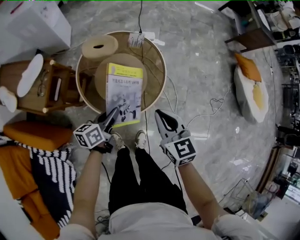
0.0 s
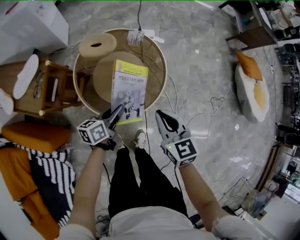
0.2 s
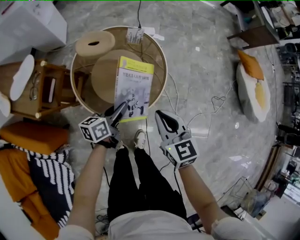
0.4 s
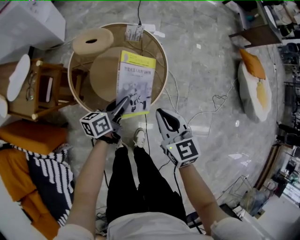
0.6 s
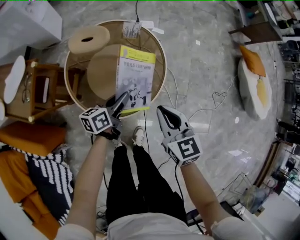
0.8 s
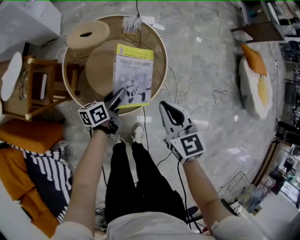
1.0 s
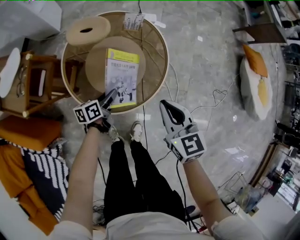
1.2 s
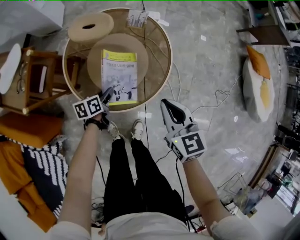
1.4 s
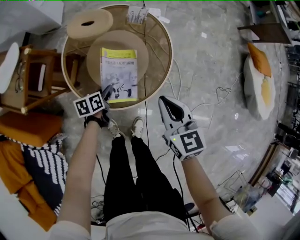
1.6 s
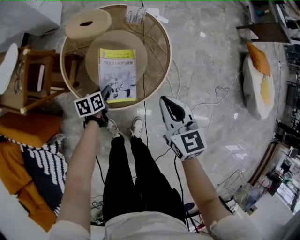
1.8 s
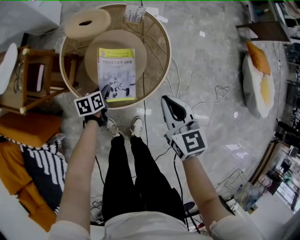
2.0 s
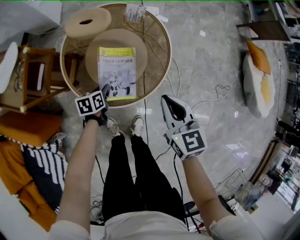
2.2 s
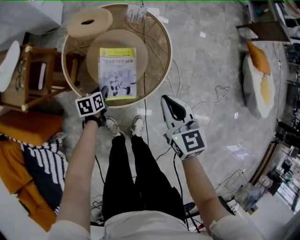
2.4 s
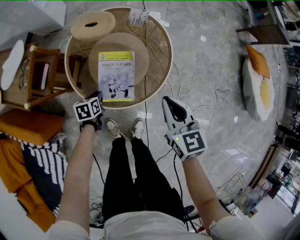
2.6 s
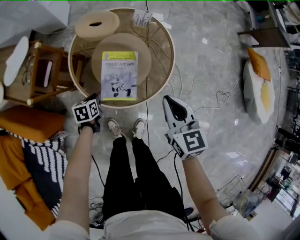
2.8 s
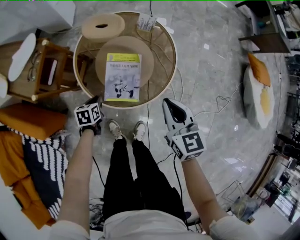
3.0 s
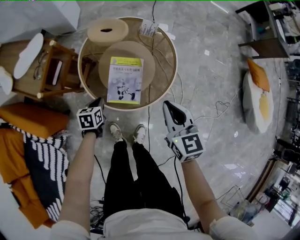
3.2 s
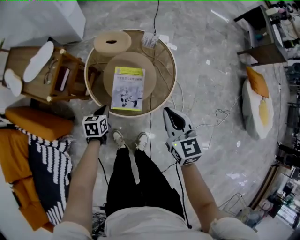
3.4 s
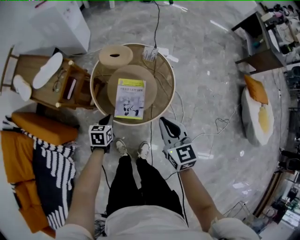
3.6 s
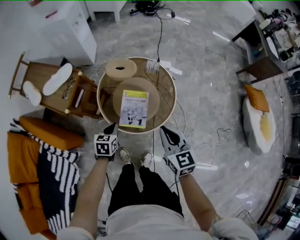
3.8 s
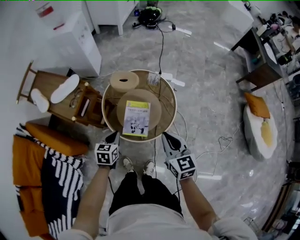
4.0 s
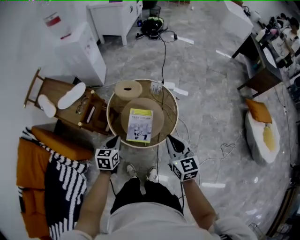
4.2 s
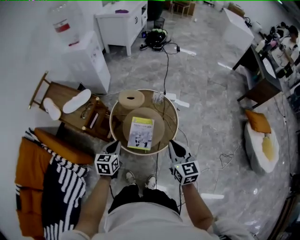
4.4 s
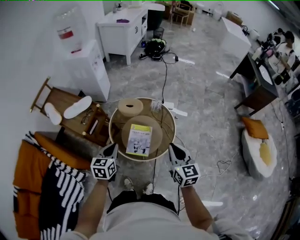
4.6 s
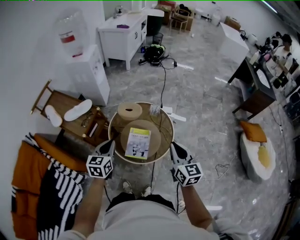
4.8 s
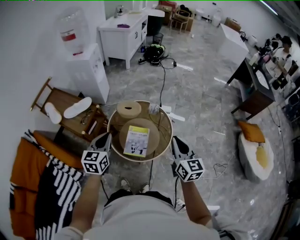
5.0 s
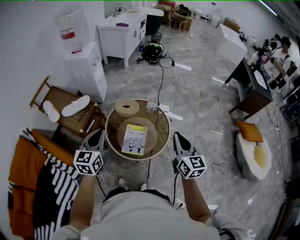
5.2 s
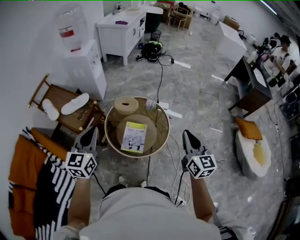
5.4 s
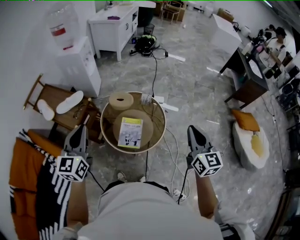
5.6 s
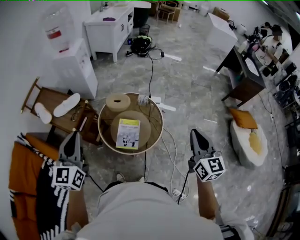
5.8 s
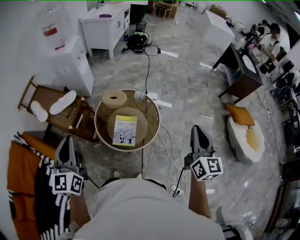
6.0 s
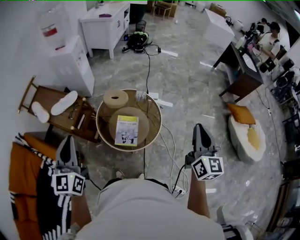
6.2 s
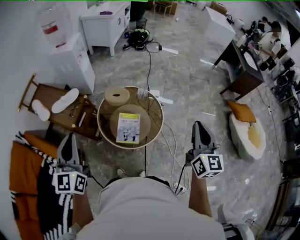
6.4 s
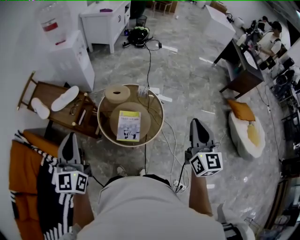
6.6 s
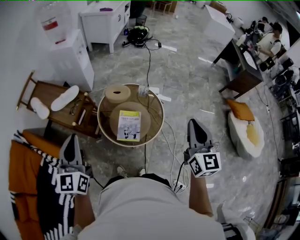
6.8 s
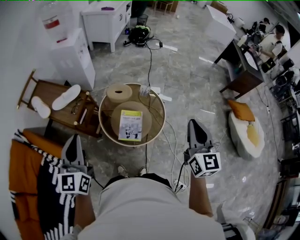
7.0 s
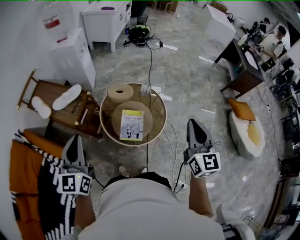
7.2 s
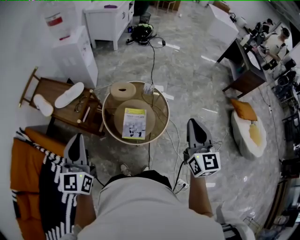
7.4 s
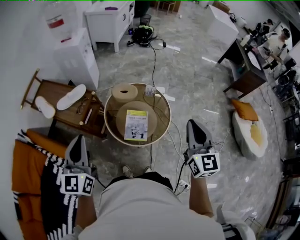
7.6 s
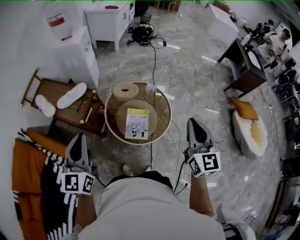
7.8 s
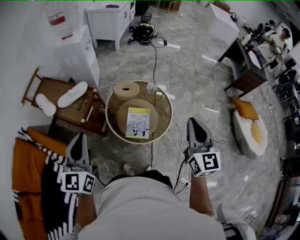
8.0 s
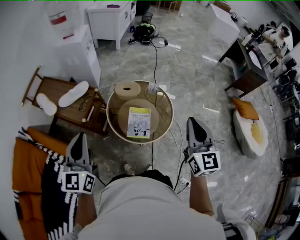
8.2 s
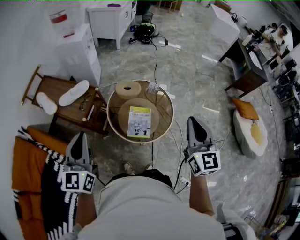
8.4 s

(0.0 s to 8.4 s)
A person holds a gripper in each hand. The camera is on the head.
0.0 s - 1.4 s: The right gripper heads downward, covering approximately 10 cm. The left gripper goes some 20 cm downward.
1.4 s - 2.8 s: The left gripper shifts approximately 10 cm to the left and backward, and turns by some 30 degrees.
2.8 s - 4.2 s: The left gripper shifts approximately 35 cm upward, and turns by approximately 30 degrees, while the right gripper moves upward, roughly 20 cm.
4.2 s - 5.6 s: The left gripper shifts approximately 30 cm upward, and points its fingers roughly 30 degrees further upward. The right gripper travels upward and to the right by about 20 cm.
5.6 s - 7.0 s: The grippers both shift to the left by approximately 5 cm.
7.0 s - 8.4 s: The right gripper goes approximately 10 cm to the left.

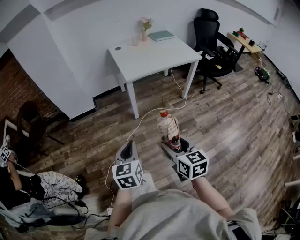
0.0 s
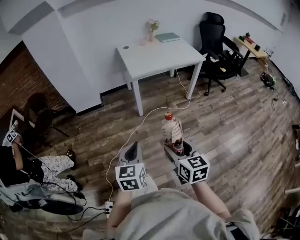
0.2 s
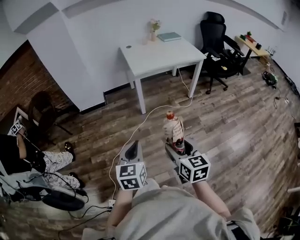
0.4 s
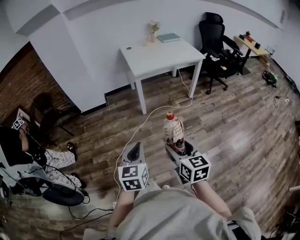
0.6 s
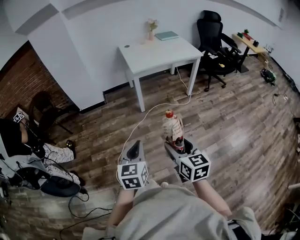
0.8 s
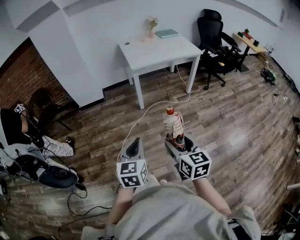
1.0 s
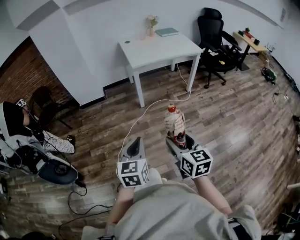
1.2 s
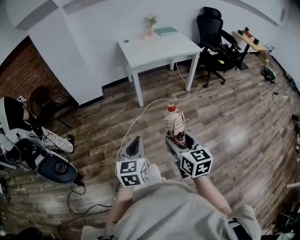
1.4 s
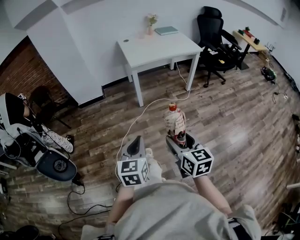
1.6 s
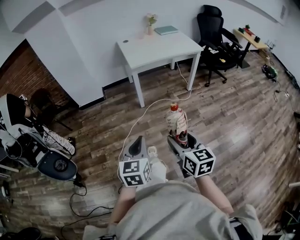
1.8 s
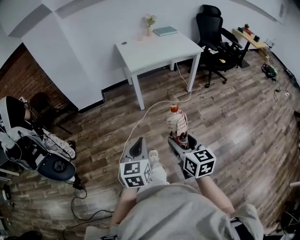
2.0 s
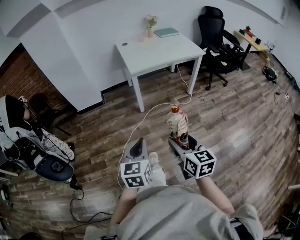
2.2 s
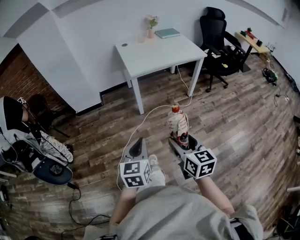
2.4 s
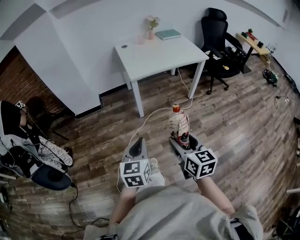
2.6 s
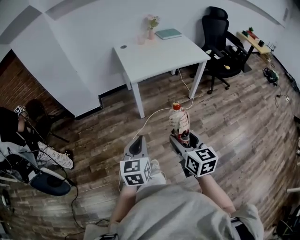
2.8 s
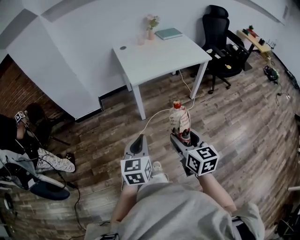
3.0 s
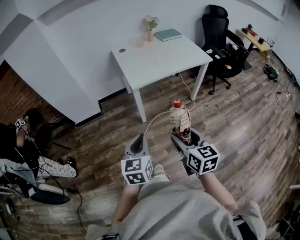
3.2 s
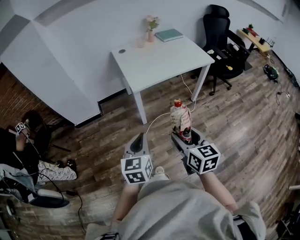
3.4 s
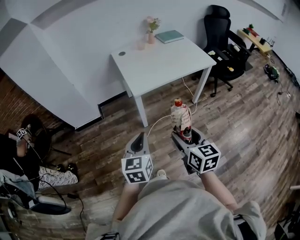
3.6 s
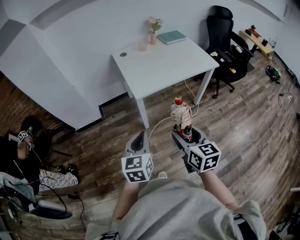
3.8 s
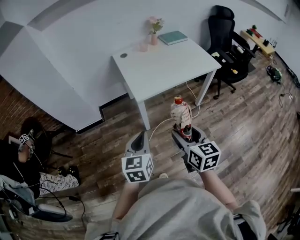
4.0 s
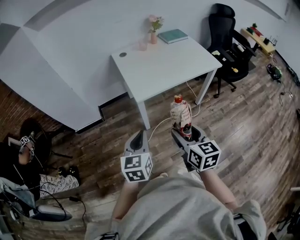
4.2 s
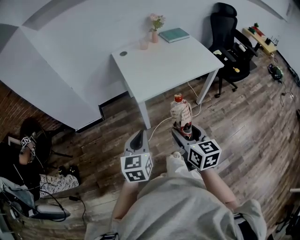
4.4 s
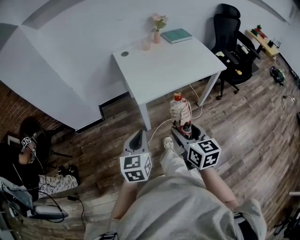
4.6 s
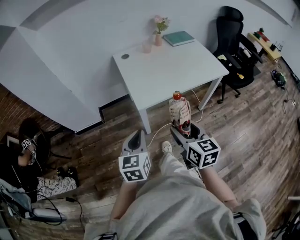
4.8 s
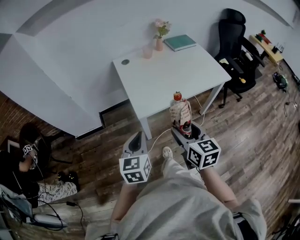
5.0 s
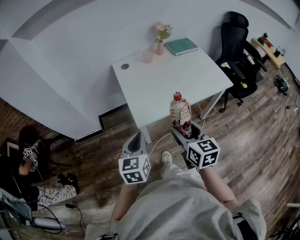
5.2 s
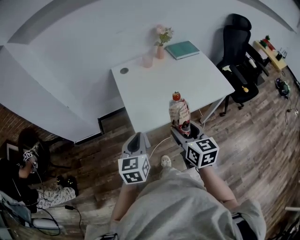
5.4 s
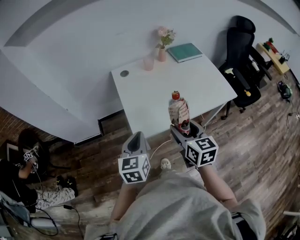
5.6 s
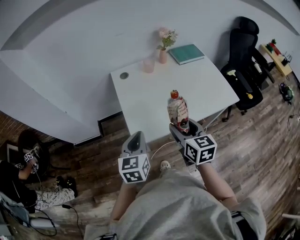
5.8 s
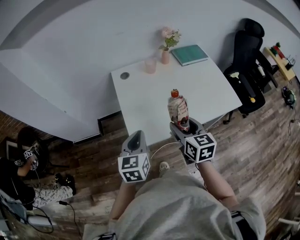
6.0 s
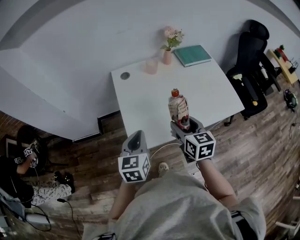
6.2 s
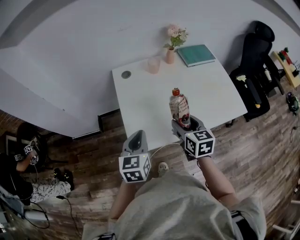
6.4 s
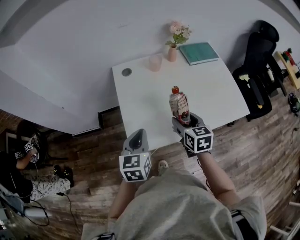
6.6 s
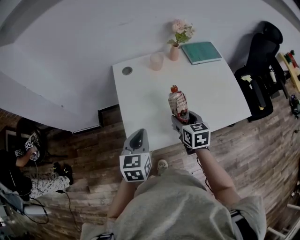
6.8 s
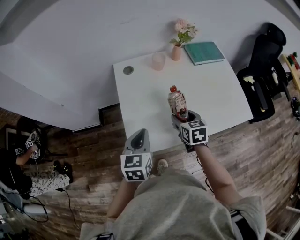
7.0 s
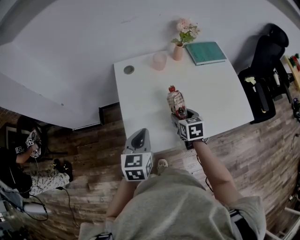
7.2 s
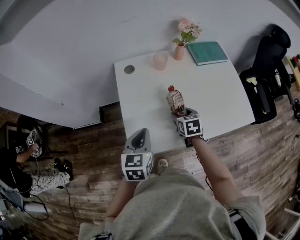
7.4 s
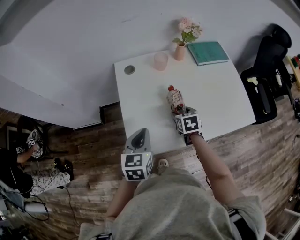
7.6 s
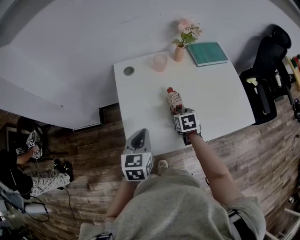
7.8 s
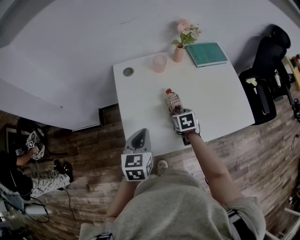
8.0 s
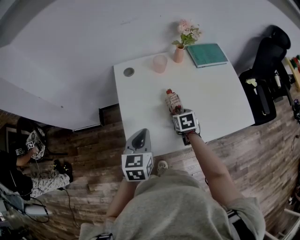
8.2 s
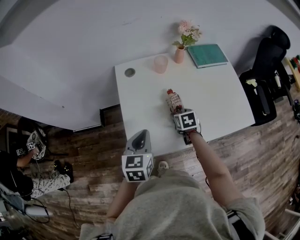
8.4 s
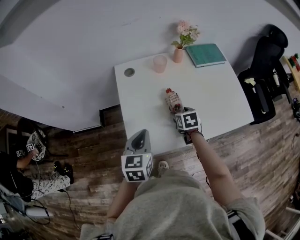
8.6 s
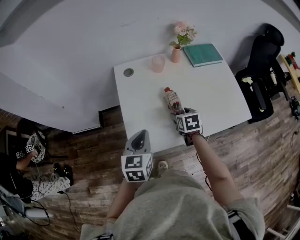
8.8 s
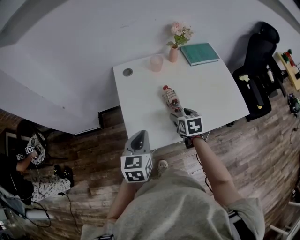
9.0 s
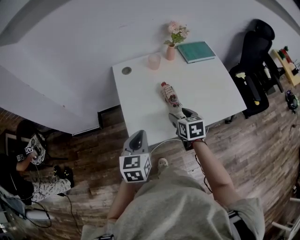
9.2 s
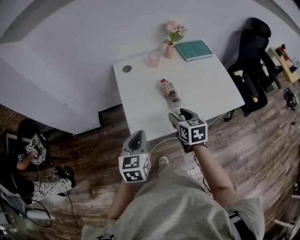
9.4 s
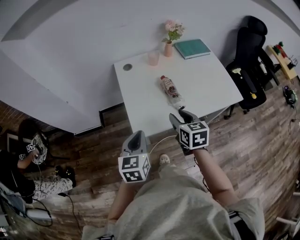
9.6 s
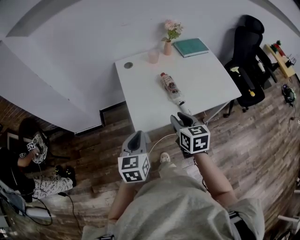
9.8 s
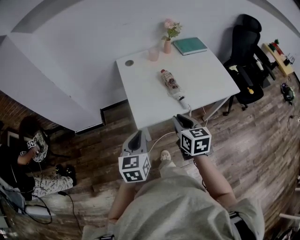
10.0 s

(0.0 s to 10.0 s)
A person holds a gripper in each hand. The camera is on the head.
0.0 s - 1.4 s: Both grippers travel together backward, about 10 cm.
1.4 s - 2.8 s: The two grippers go roughly 15 cm forward.
2.8 s - 4.2 s: The grippers both shift forward by approximately 25 cm.
4.2 s - 5.8 s: The two grippers go roughly 30 cm forward.
5.8 s - 7.2 s: The left gripper goes some 10 cm forward and downward, while the right gripper heads forward and downward, covering some 25 cm, and changes its angle by about 20 degrees.
8.6 s - 10.0 s: The right gripper goes roughly 35 cm backward and upward, swivels some 30 degrees, and closes up. The left gripper is displaced backward by some 20 cm.

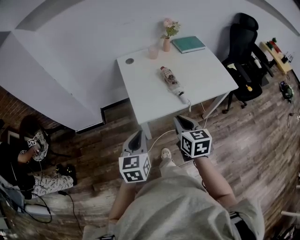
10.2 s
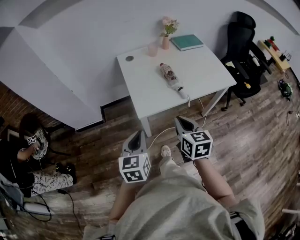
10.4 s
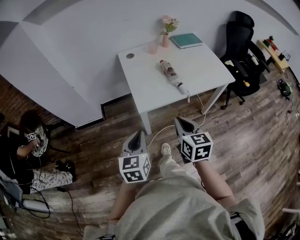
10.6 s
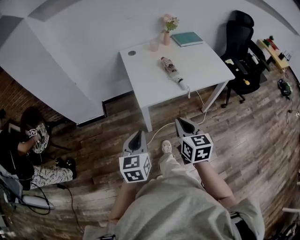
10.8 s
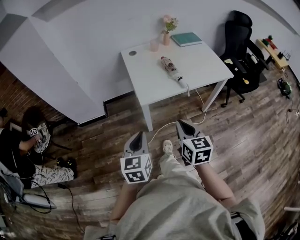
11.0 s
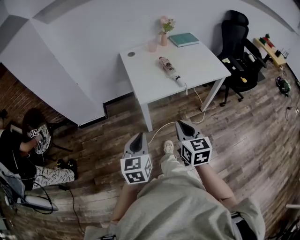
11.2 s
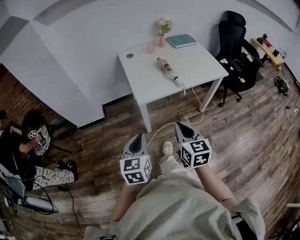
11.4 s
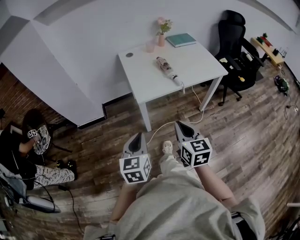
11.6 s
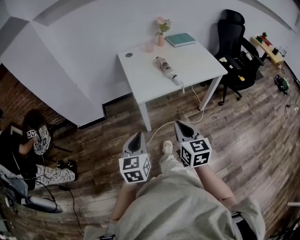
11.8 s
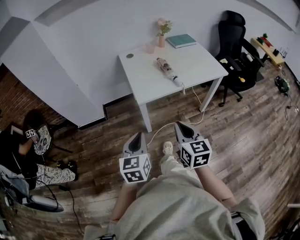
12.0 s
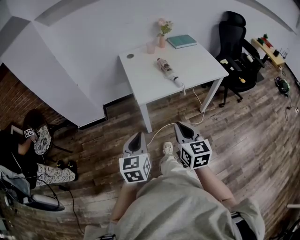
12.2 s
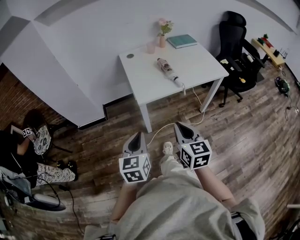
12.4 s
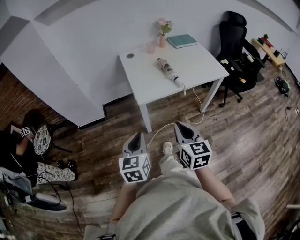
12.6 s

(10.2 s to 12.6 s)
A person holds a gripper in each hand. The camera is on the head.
10.2 s - 11.4 s: Both grippers move backward, some 20 cm.
11.4 s - 12.6 s: The two grippers keep their place.

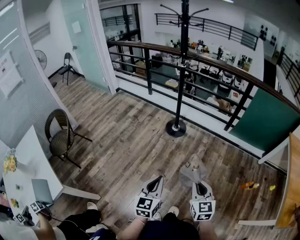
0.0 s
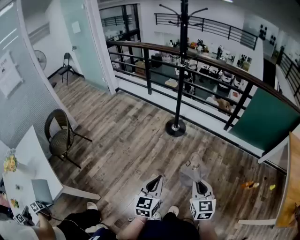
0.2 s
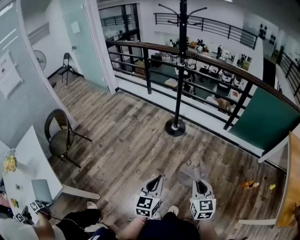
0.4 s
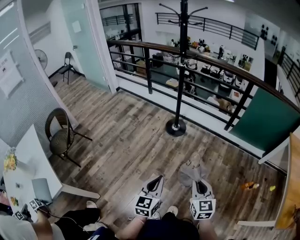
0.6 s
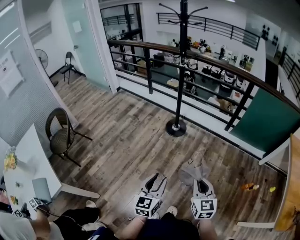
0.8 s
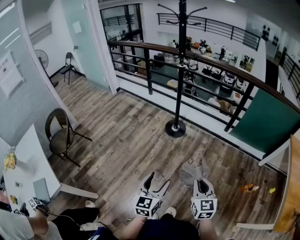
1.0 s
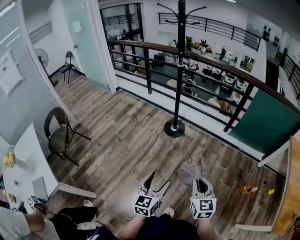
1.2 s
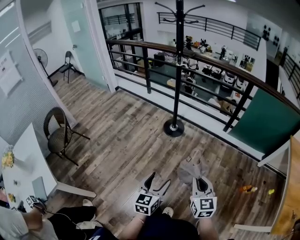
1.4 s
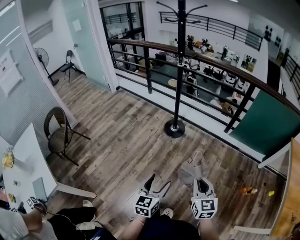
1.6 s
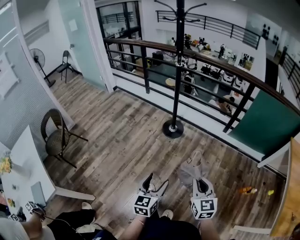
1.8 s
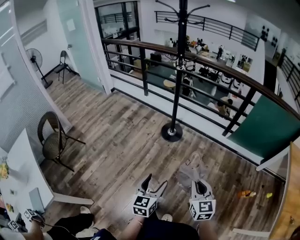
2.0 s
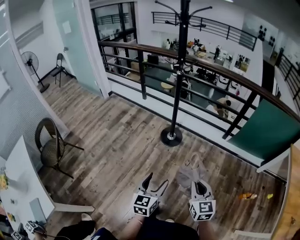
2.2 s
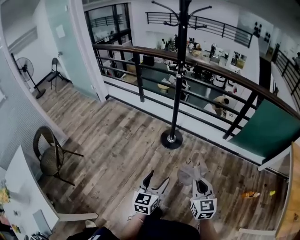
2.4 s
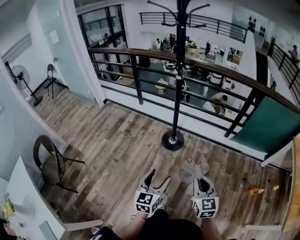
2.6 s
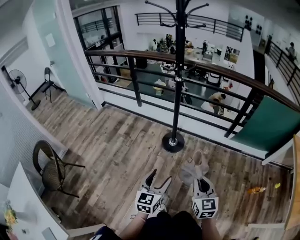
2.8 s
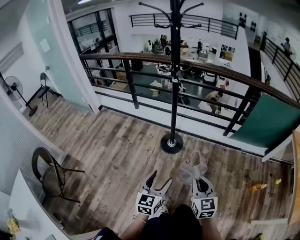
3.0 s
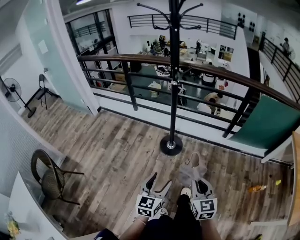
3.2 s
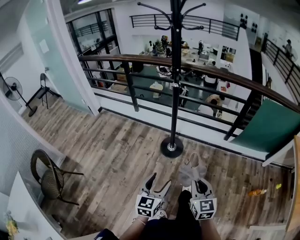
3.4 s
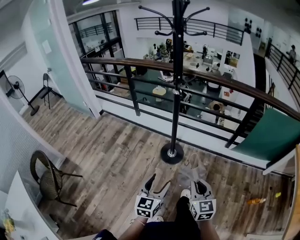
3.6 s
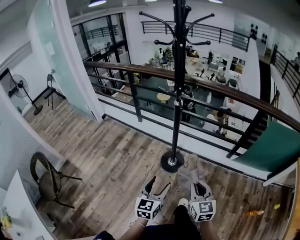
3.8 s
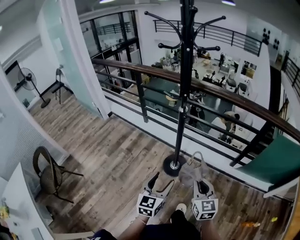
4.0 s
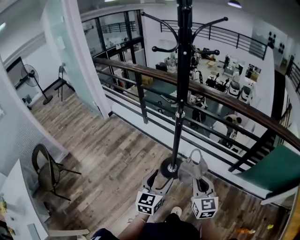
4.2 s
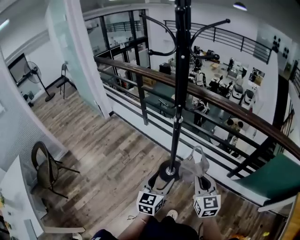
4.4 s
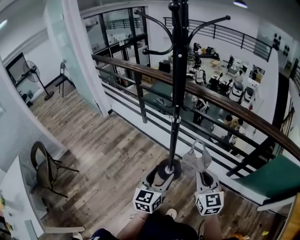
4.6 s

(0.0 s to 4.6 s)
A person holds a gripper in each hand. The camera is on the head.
0.0 s - 1.6 s: The left gripper heads to the right, covering some 5 cm, and opens up. Meanwhile the right gripper heads to the right and forward, covering approximately 5 cm.
1.6 s - 3.0 s: The grippers both shift forward and to the left by approximately 25 cm.
3.0 s - 4.6 s: Both grippers travel together forward, roughly 35 cm.
